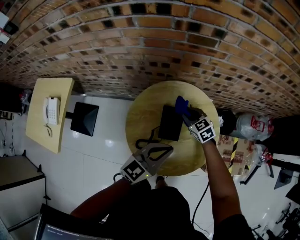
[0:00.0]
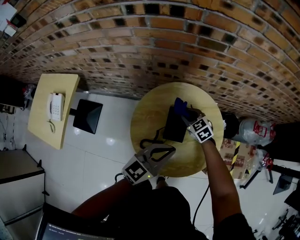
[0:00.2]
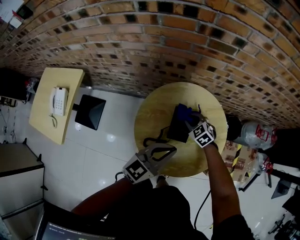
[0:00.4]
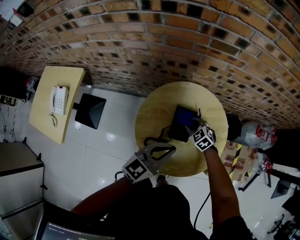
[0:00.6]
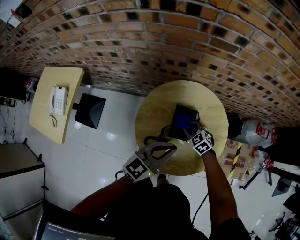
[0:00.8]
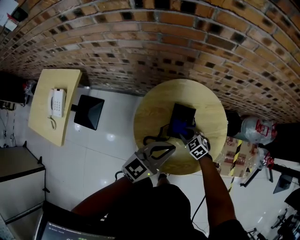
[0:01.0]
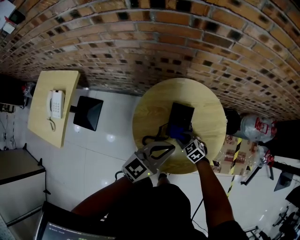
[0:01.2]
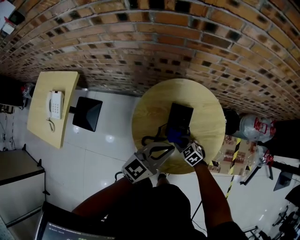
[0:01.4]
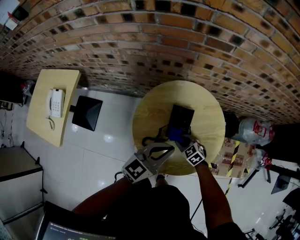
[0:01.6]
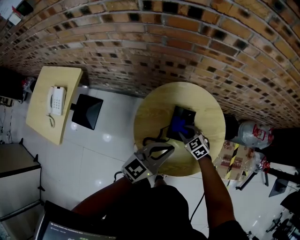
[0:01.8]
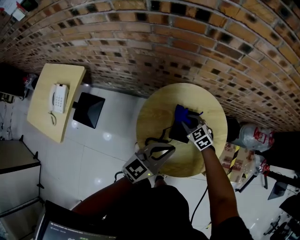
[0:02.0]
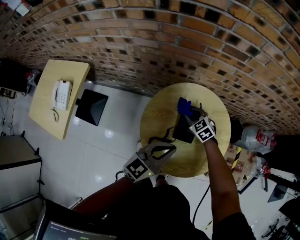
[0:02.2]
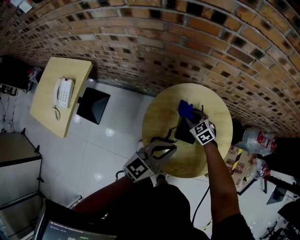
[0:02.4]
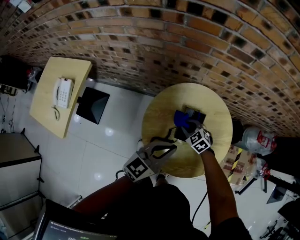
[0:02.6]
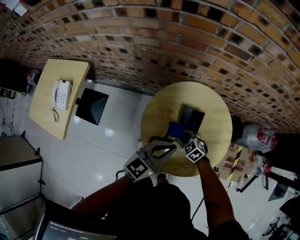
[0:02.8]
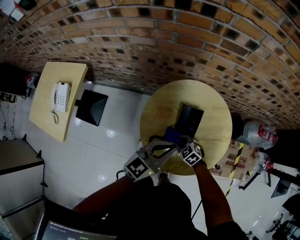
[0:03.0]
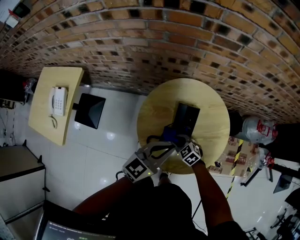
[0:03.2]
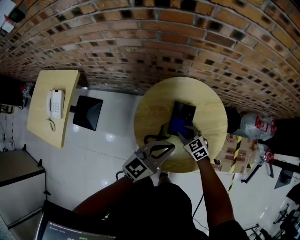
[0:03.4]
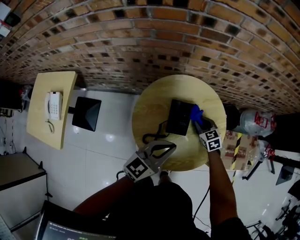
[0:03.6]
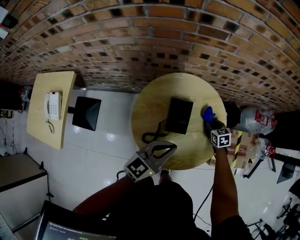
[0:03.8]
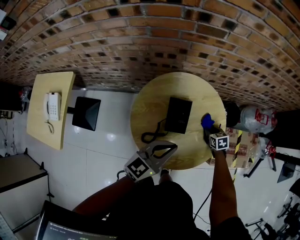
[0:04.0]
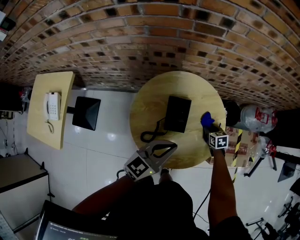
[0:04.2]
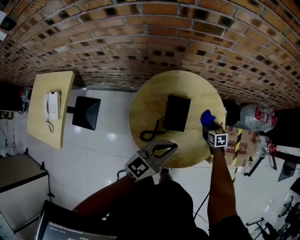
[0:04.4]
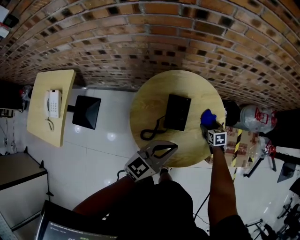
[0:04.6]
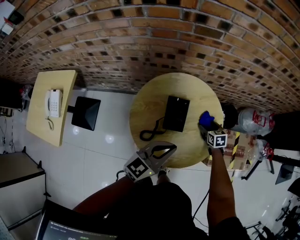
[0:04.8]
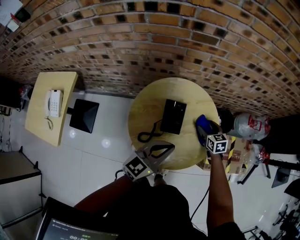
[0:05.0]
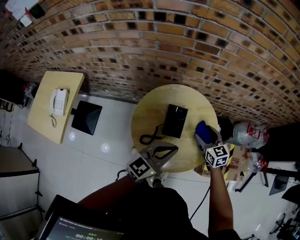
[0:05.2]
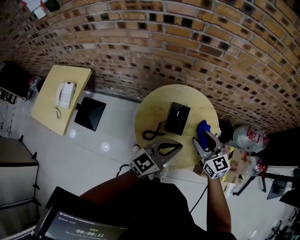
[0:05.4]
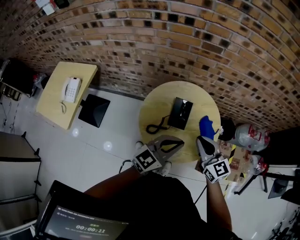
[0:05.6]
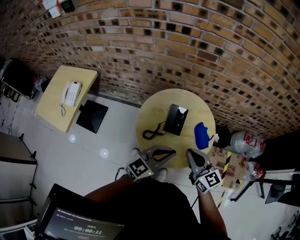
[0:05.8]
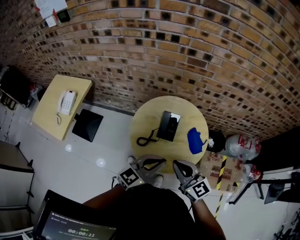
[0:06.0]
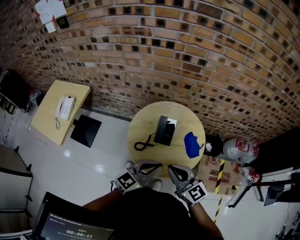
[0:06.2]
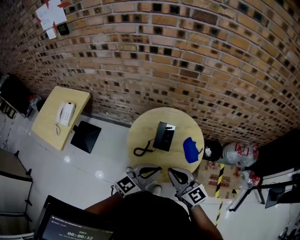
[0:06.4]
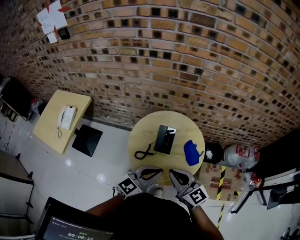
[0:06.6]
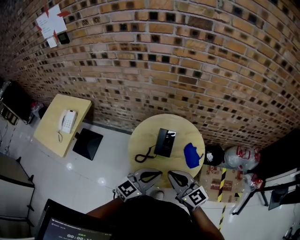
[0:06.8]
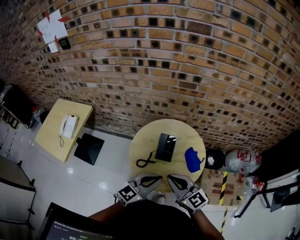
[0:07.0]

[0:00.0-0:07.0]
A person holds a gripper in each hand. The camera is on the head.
0:00.0 to 0:01.4: The right gripper moves backward and downward, roughly 20 cm.
0:01.4 to 0:02.8: The right gripper shifts roughly 5 cm to the left, and goes forward and returns, approximately 15 cm each way.
0:02.8 to 0:04.2: The right gripper moves to the right, approximately 25 cm, and rolls clockwise, seen from behind, by some 50 degrees; the left gripper is displaced to the right by roughly 5 cm.
0:04.2 to 0:05.6: The left gripper moves upward and backward, about 10 cm, while the right gripper is displaced upward and backward by approximately 35 cm, tips its fingers upward by about 40 degrees, and opens, then closes once more.
0:05.6 to 0:07.0: The left gripper travels backward by approximately 5 cm, while the right gripper travels backward and upward by some 10 cm.

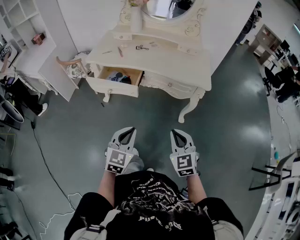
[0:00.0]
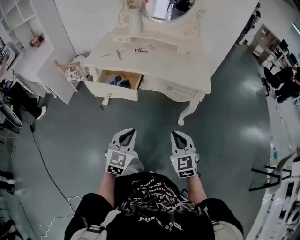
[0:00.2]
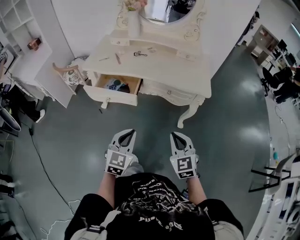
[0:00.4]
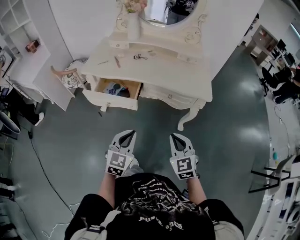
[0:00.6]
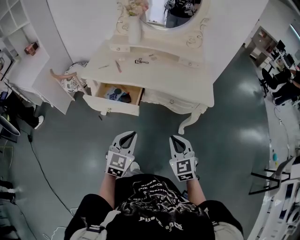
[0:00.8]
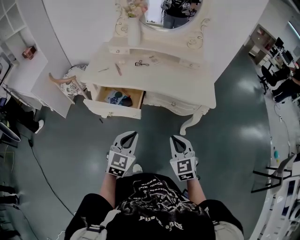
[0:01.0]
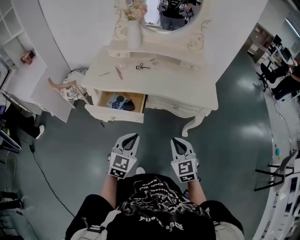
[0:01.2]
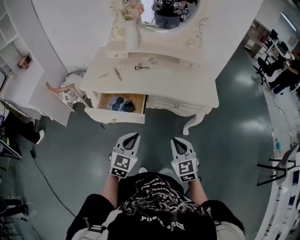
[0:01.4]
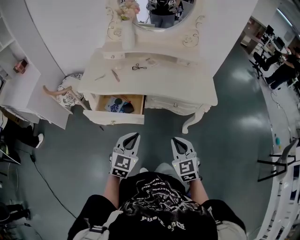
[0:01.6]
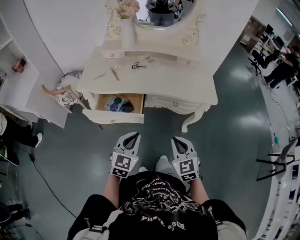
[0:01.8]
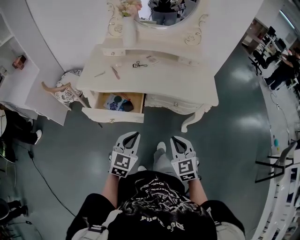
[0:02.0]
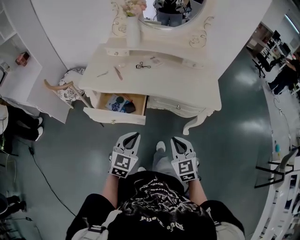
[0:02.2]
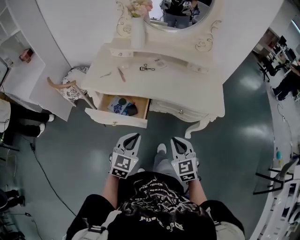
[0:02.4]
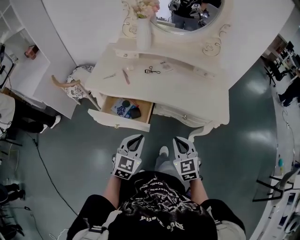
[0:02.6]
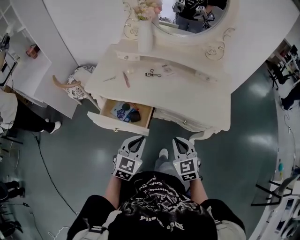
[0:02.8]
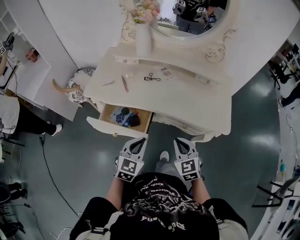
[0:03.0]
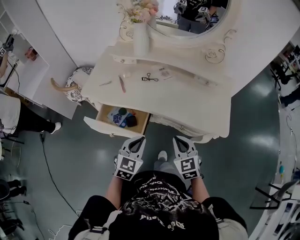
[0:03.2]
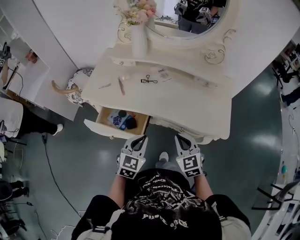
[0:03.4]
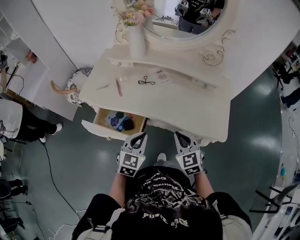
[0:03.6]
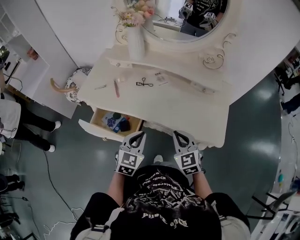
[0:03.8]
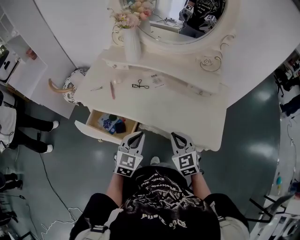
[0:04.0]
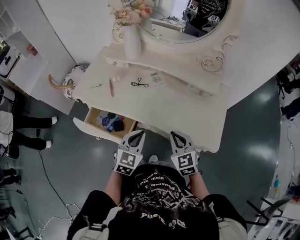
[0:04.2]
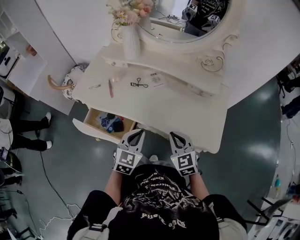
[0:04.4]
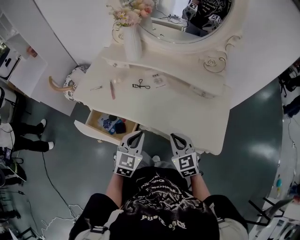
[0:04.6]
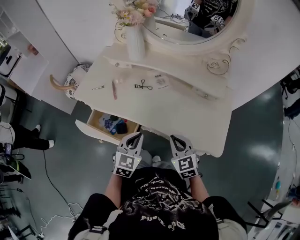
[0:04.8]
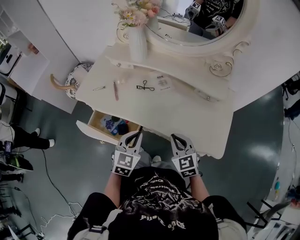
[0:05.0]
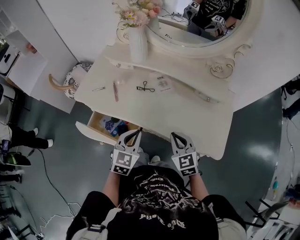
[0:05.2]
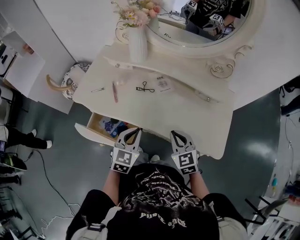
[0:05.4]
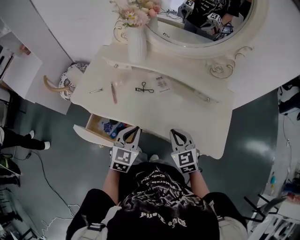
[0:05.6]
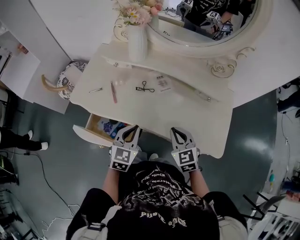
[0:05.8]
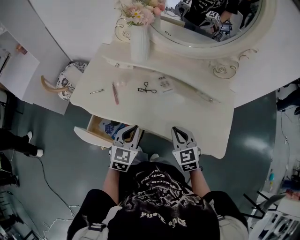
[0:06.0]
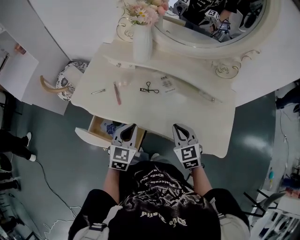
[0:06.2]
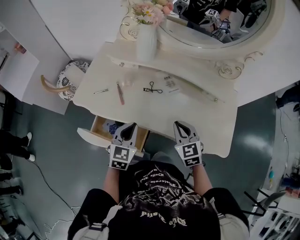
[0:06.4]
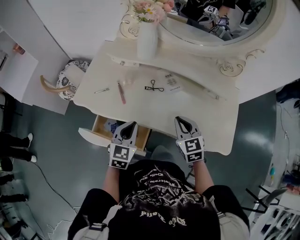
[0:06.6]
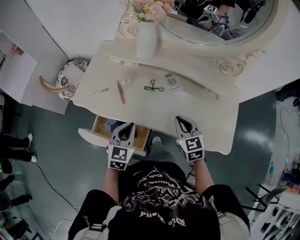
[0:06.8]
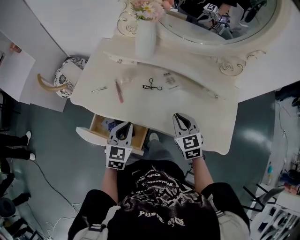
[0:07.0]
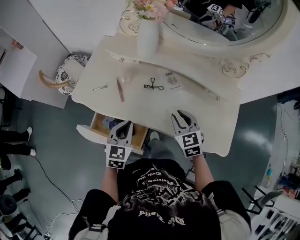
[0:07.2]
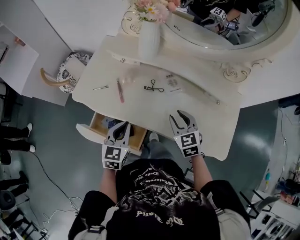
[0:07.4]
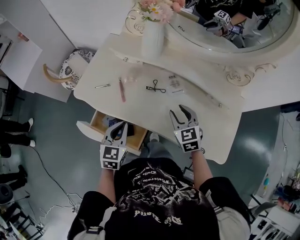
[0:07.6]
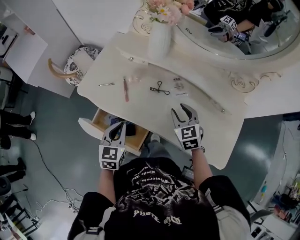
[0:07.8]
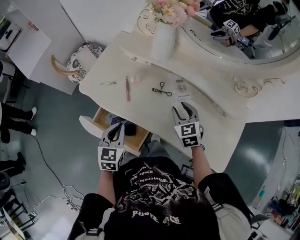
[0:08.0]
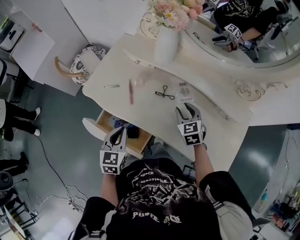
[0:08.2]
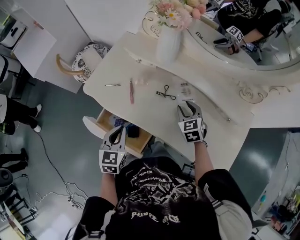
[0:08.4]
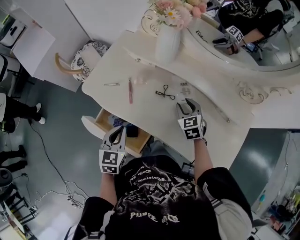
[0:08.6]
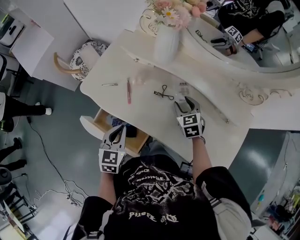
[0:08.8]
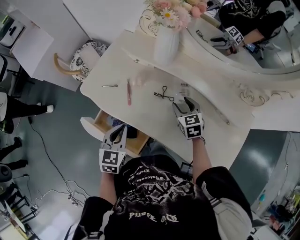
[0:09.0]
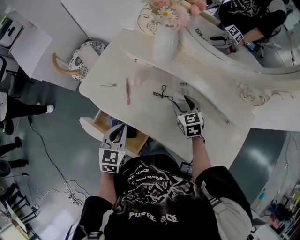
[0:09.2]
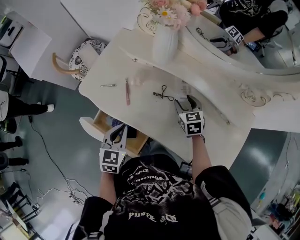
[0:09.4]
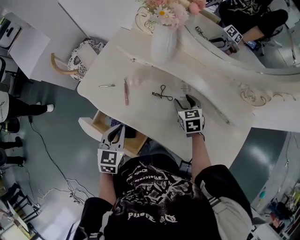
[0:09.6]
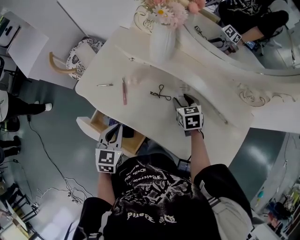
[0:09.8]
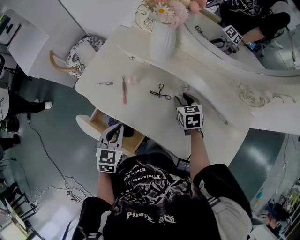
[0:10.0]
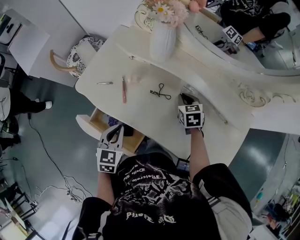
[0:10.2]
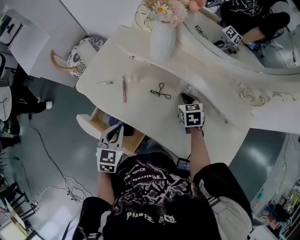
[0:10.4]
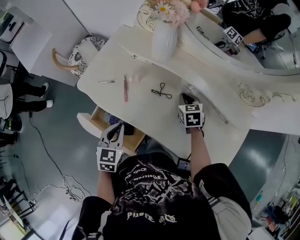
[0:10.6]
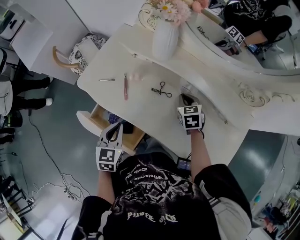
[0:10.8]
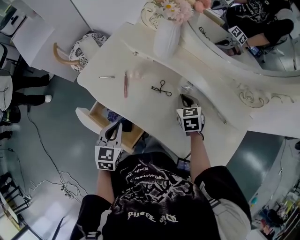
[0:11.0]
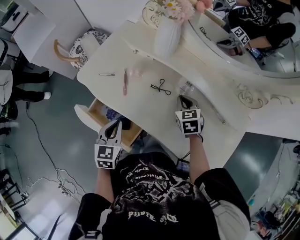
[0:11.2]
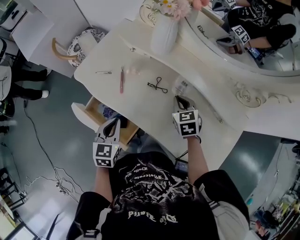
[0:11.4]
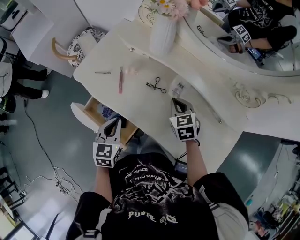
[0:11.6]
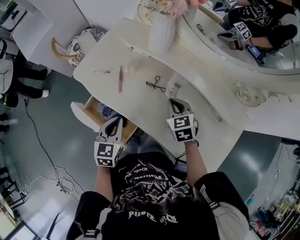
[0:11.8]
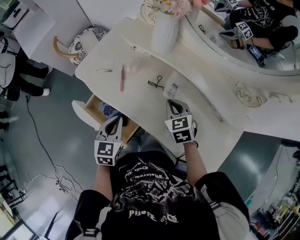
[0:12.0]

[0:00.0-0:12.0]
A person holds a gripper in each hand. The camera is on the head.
0:00.0 to 0:01.6: The two grippers go roughly 15 cm forward and to the left.
0:01.6 to 0:03.0: Both grippers travel together forward, about 15 cm.
0:03.0 to 0:04.4: The two grippers go some 15 cm forward and to the right.
0:04.4 to 0:06.0: The right gripper is displaced forward by some 10 cm, while the left gripper shifts some 10 cm to the left and forward.
0:06.0 to 0:07.6: The right gripper travels forward by some 10 cm, and opens up, while the left gripper shifts approximately 10 cm to the left.
0:07.6 to 0:09.0: The right gripper is displaced forward and downward by approximately 10 cm.
0:09.0 to 0:10.4: The right gripper closes.
0:10.4 to 0:12.0: The right gripper goes approximately 10 cm backward, to the left and upward.

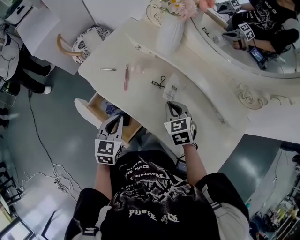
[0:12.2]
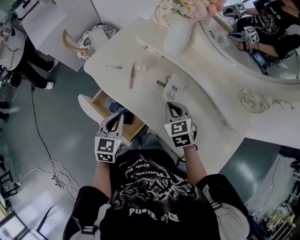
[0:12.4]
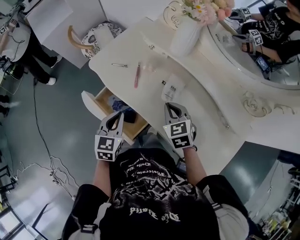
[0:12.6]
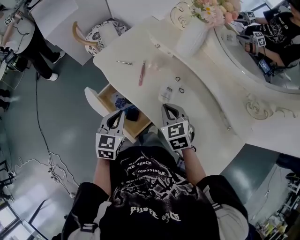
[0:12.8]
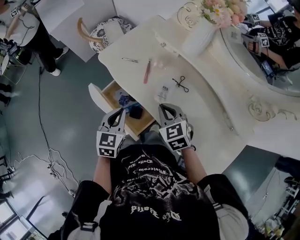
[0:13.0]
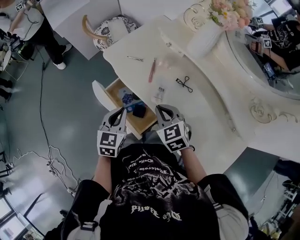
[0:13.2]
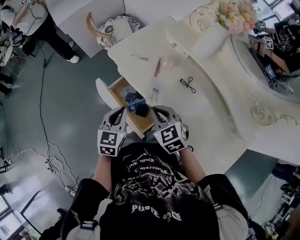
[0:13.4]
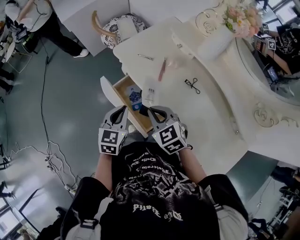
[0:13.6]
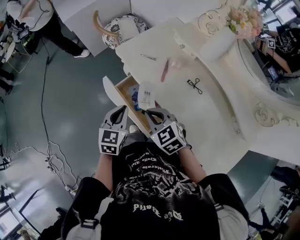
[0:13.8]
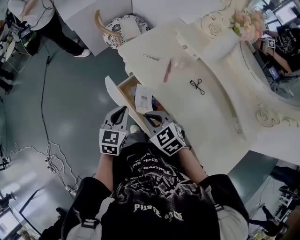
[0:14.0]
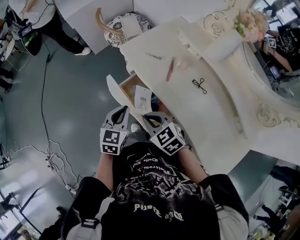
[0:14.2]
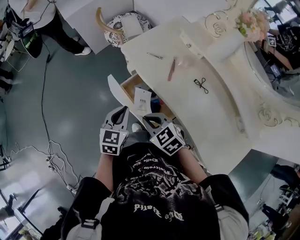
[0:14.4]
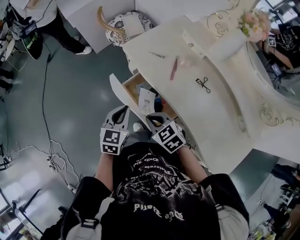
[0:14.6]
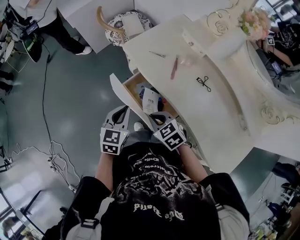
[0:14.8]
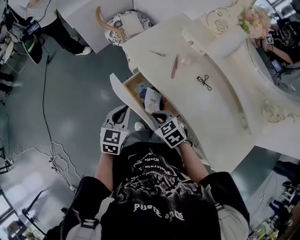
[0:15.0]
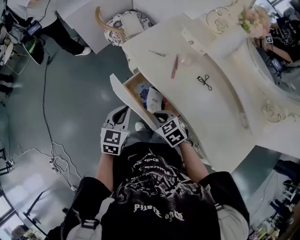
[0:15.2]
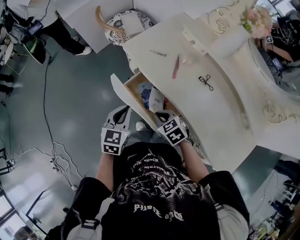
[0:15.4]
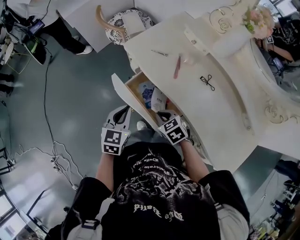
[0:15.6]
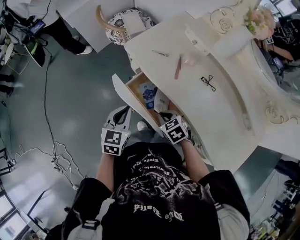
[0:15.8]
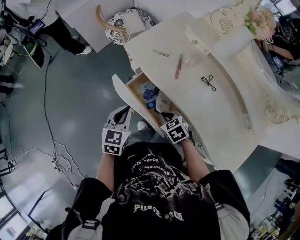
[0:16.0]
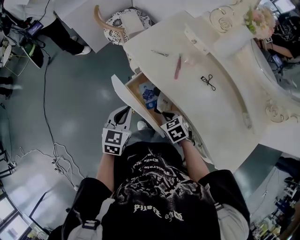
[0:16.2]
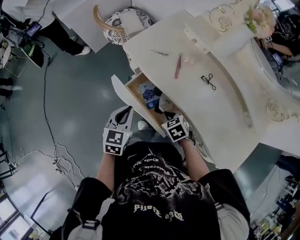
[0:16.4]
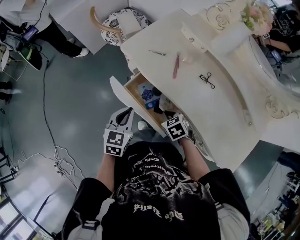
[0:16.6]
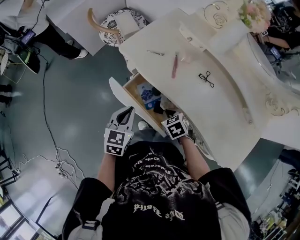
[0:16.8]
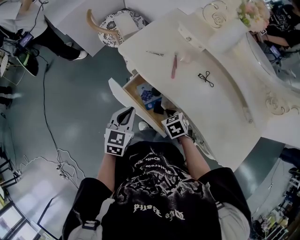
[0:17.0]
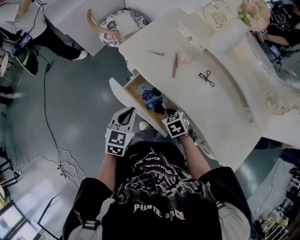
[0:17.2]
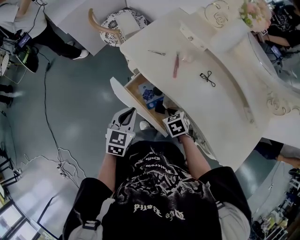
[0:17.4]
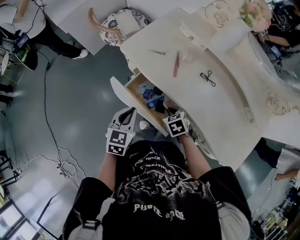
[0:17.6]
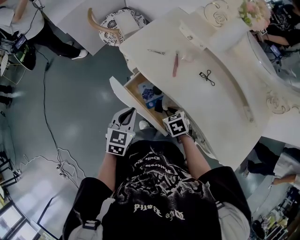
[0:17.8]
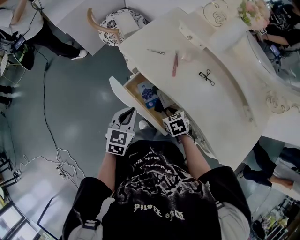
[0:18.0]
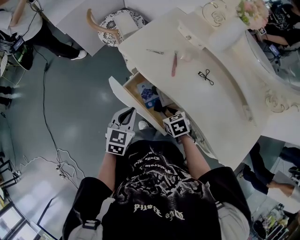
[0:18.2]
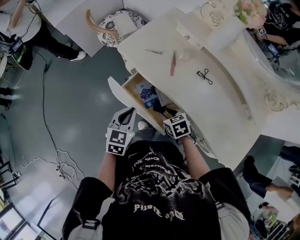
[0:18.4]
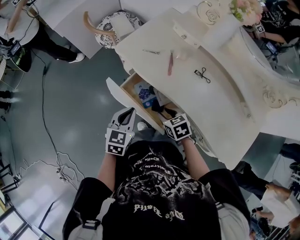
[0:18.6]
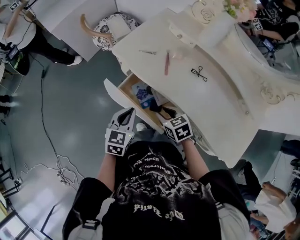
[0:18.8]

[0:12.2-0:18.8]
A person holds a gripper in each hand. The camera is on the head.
0:12.2 to 0:13.8: The left gripper goes approximately 15 cm to the left; the right gripper moves to the left, about 25 cm, and swivels some 40 degrees.
0:13.8 to 0:15.4: The right gripper shifts approximately 10 cm downward.
0:15.4 to 0:17.2: The right gripper shifts approximately 5 cm to the right and downward, and turns by roughly 20 degrees.
0:17.2 to 0:18.8: The right gripper moves some 5 cm, and opens its fingers.
